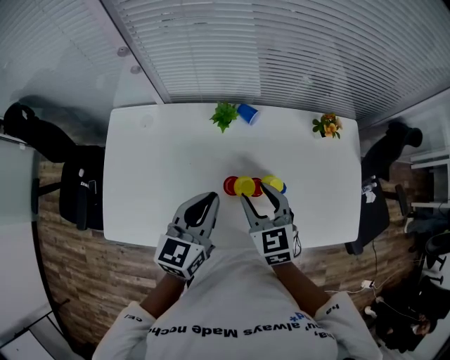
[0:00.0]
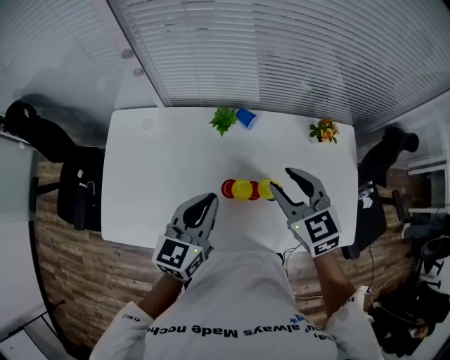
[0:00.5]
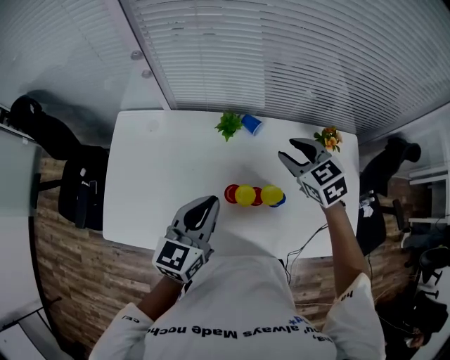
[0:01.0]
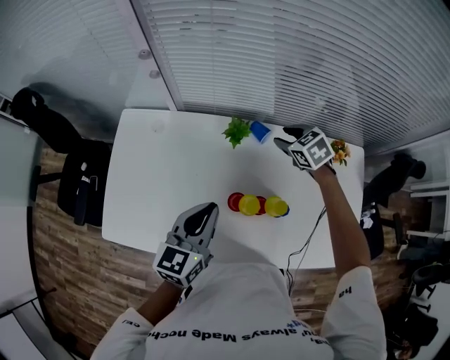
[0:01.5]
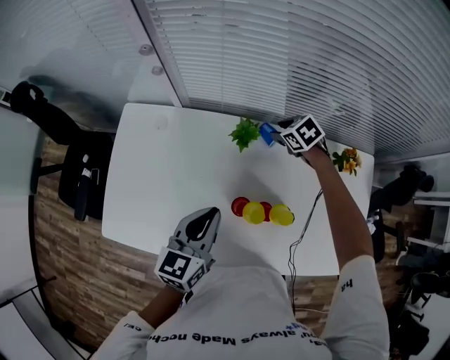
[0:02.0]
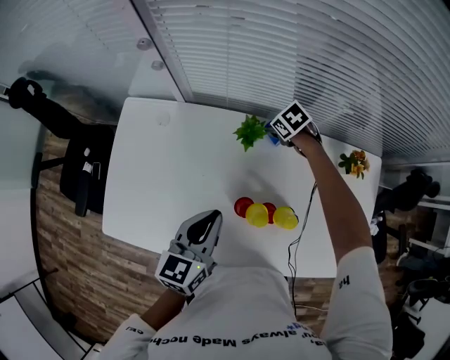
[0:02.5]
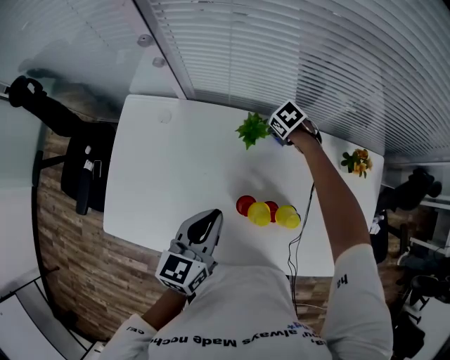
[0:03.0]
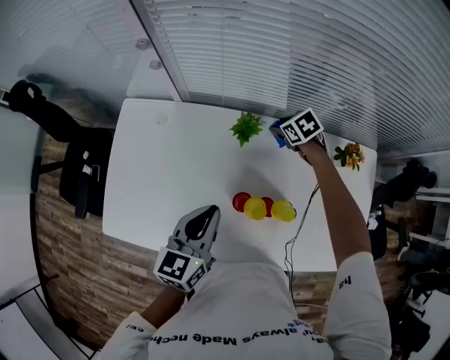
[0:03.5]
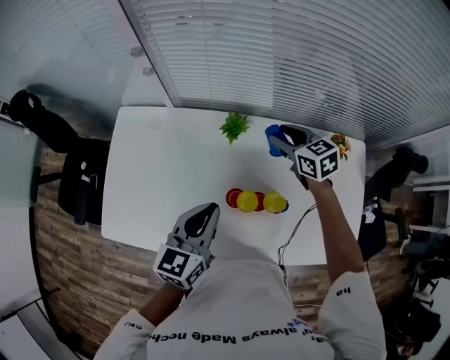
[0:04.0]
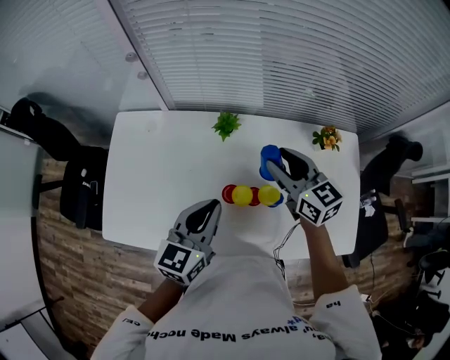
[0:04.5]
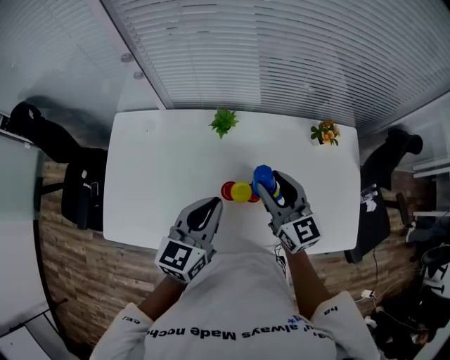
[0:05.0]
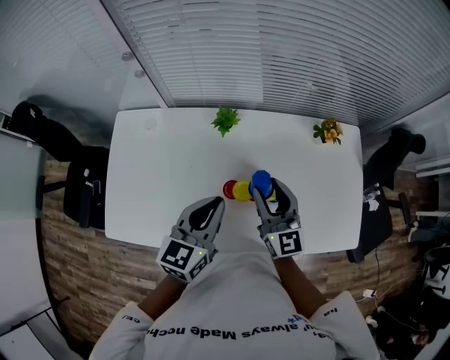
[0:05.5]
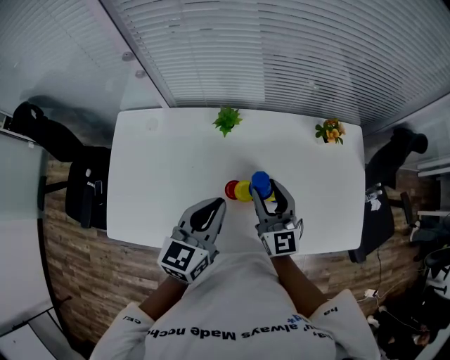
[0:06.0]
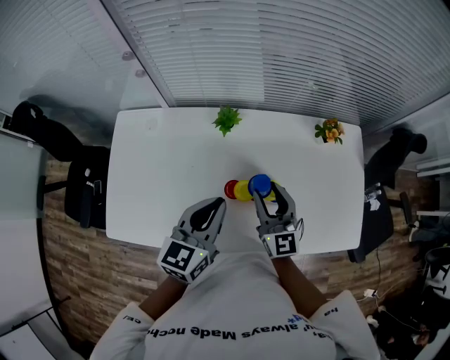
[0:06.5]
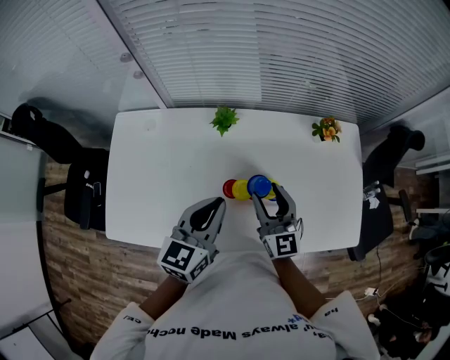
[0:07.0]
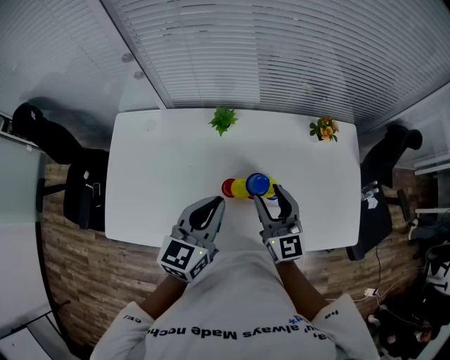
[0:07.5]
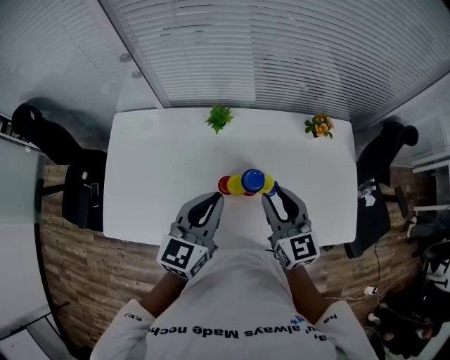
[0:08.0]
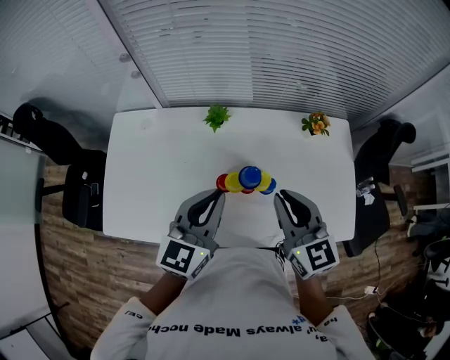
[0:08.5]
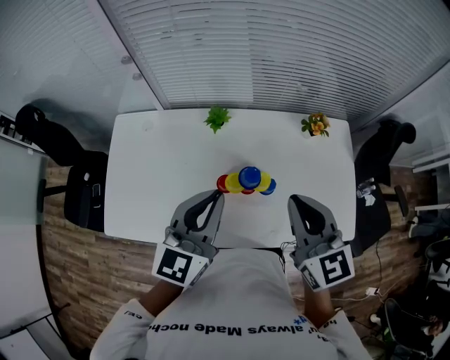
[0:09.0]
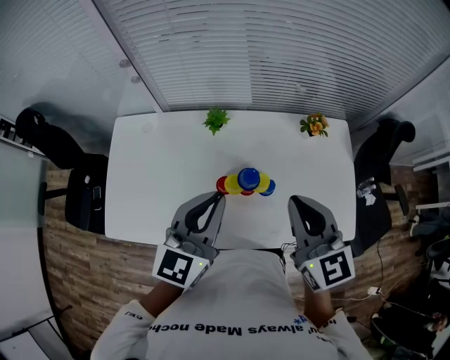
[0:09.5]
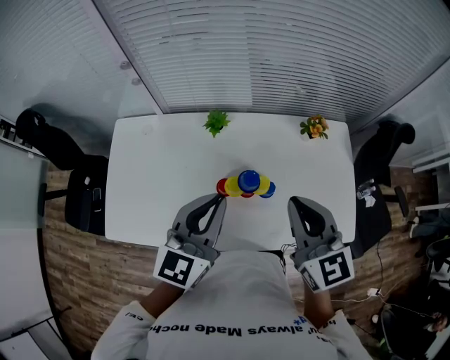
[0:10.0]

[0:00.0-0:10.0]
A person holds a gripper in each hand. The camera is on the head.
0:00.0 to 0:02.0: The left gripper changes place by about 5 cm. The right gripper shifts approximately 30 cm forward and downward, and points its fingers some 30 degrees further downward.
0:02.0 to 0:04.0: The right gripper goes approximately 10 cm upward, and swivels about 30 degrees.
0:04.0 to 0:06.0: The right gripper moves backward, some 20 cm, and angles its fingers upward, by approximately 30 degrees.
0:06.0 to 0:08.0: The right gripper shifts by approximately 5 cm.
0:08.0 to 0:10.0: The right gripper moves upward, approximately 10 cm, and closes up, while the left gripper travels upward by about 5 cm.

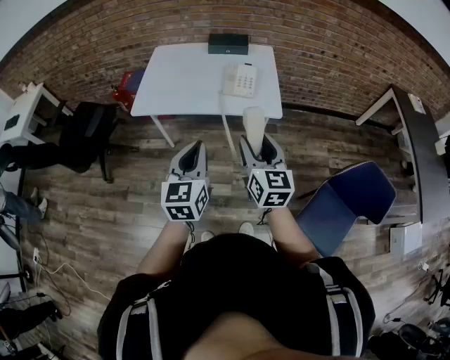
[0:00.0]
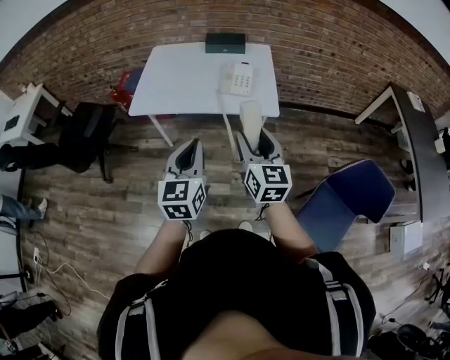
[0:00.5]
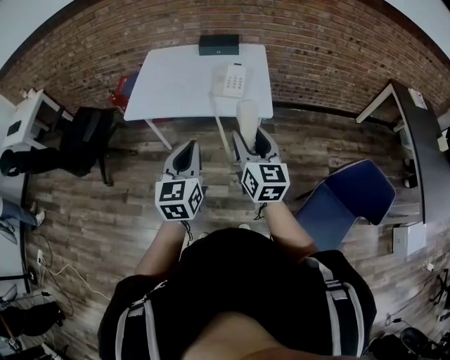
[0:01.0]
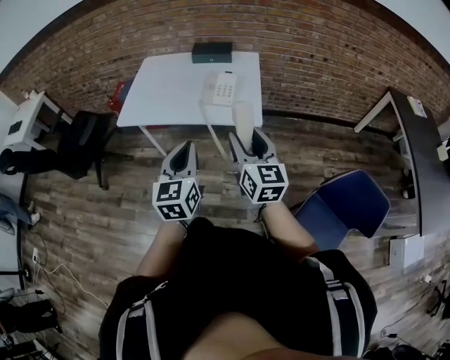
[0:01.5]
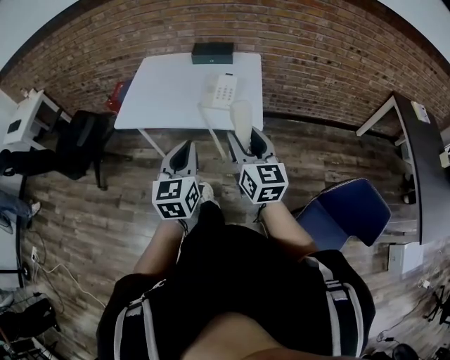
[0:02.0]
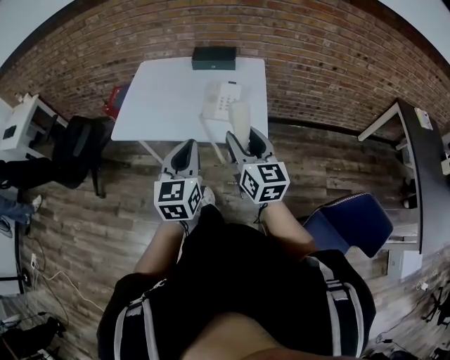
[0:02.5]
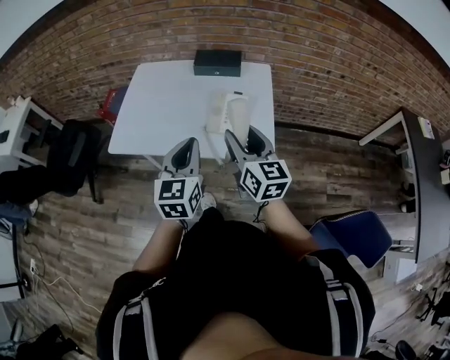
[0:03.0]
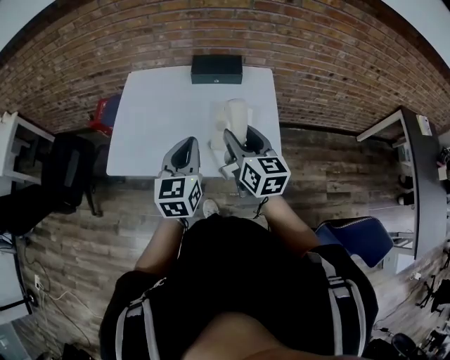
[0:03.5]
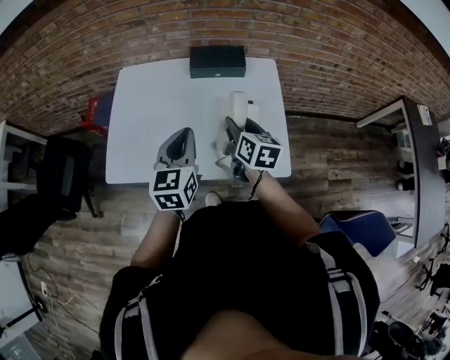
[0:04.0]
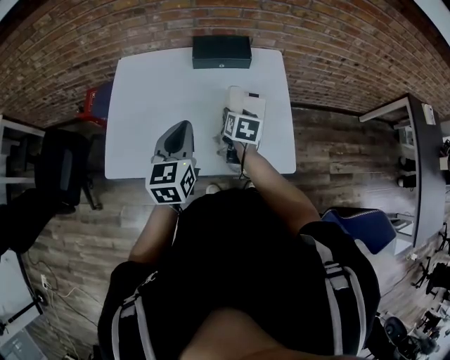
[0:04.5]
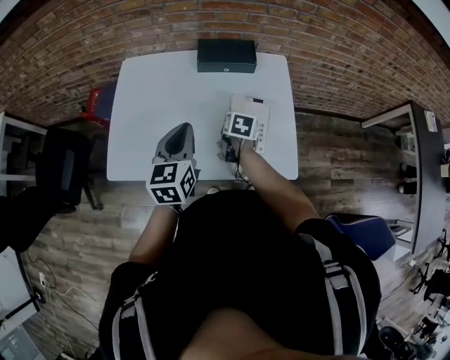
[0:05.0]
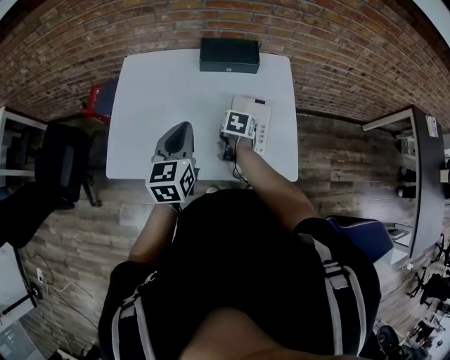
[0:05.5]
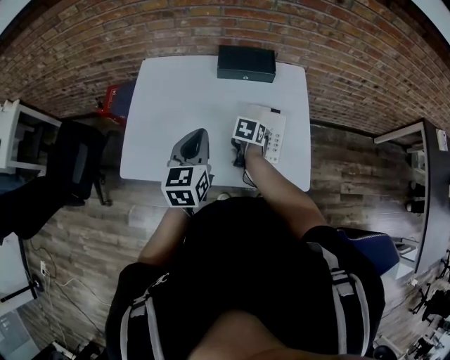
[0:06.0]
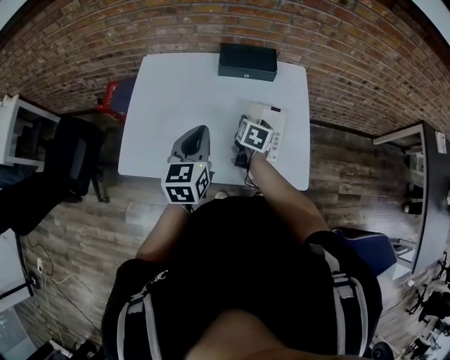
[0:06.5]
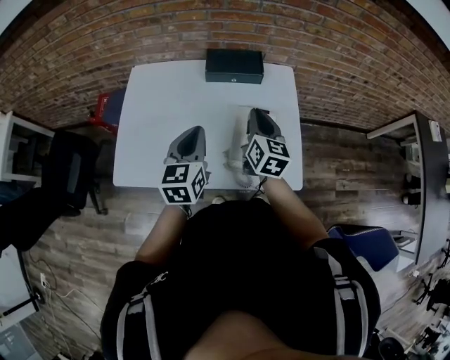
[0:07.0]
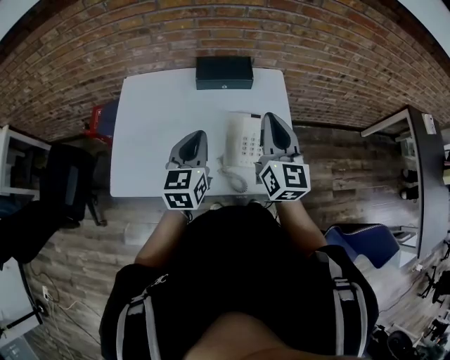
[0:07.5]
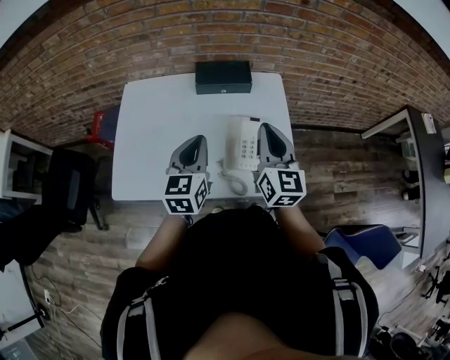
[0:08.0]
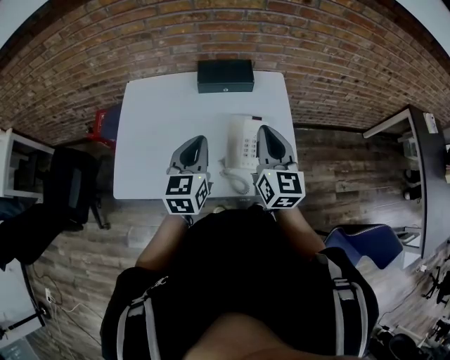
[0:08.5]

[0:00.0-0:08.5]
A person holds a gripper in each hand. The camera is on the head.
0:00.0 to 0:02.0: The grippers both shift to the right and forward by approximately 15 cm.
0:02.0 to 0:04.0: The two grippers go about 40 cm forward. The right gripper rotates some 30 degrees.
0:04.0 to 0:06.5: The left gripper moves about 5 cm. Meanwhile the right gripper is displaced downward and forward by about 15 cm, and turns by approximately 20 degrees.
0:06.5 to 0:08.5: The right gripper shifts approximately 20 cm upward, tips its fingers upward by some 40 degrees, and closes up. Meanwhile the left gripper shifts by about 5 cm.

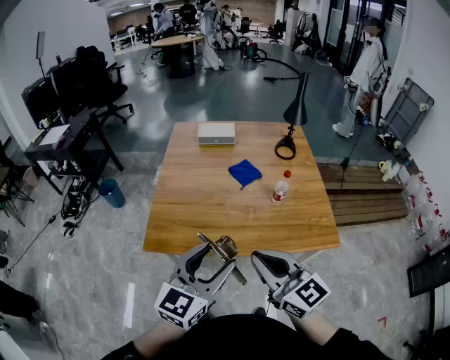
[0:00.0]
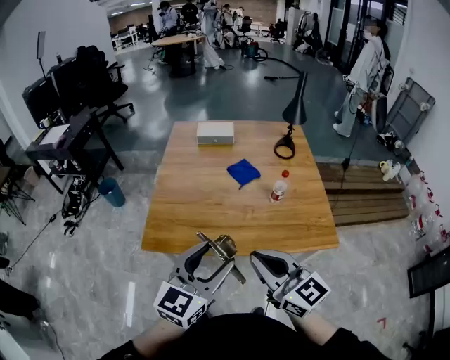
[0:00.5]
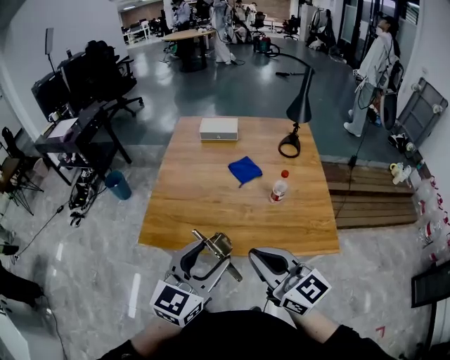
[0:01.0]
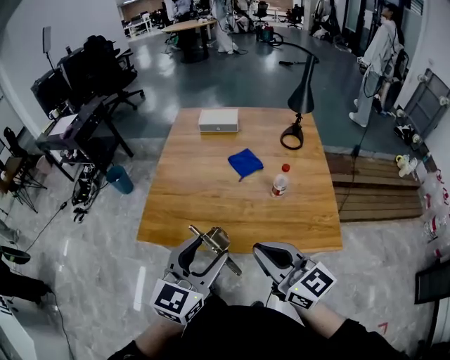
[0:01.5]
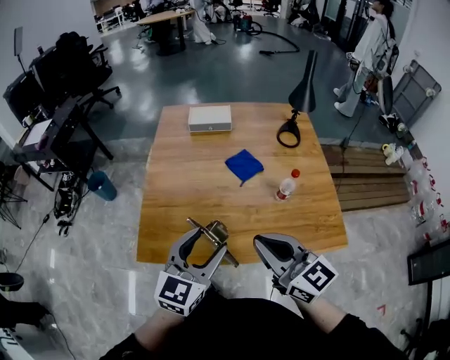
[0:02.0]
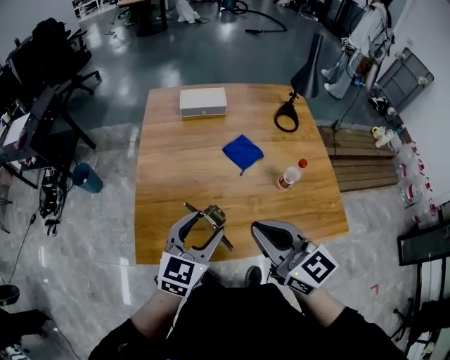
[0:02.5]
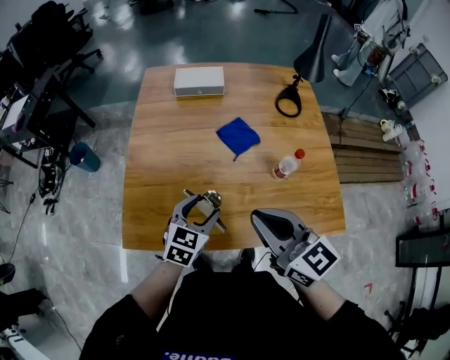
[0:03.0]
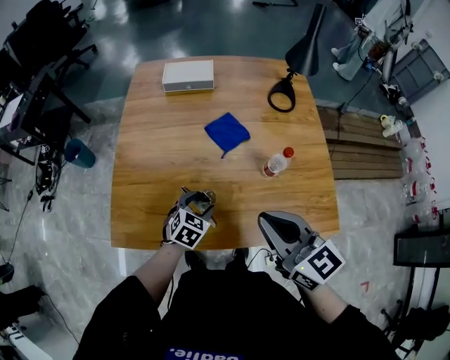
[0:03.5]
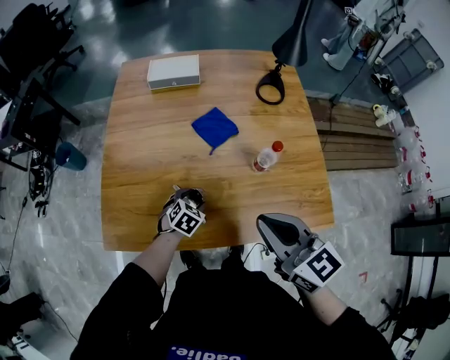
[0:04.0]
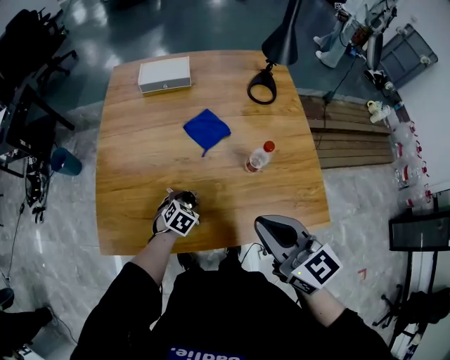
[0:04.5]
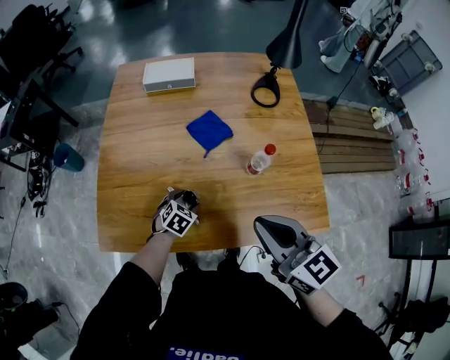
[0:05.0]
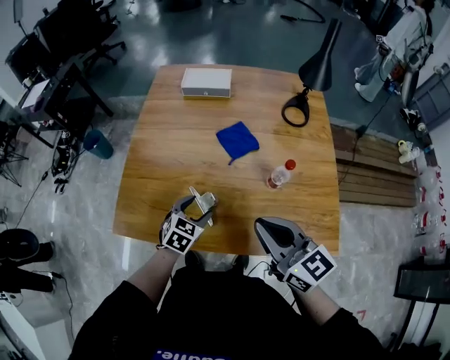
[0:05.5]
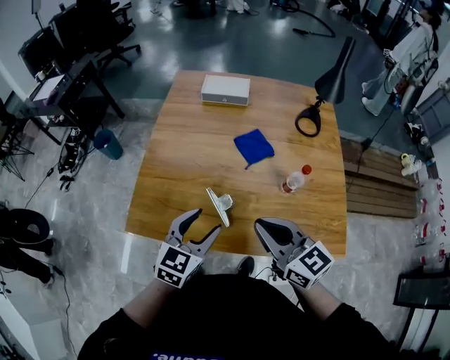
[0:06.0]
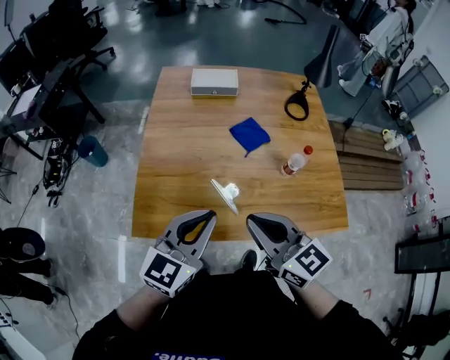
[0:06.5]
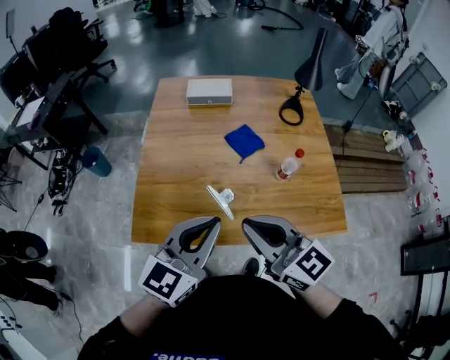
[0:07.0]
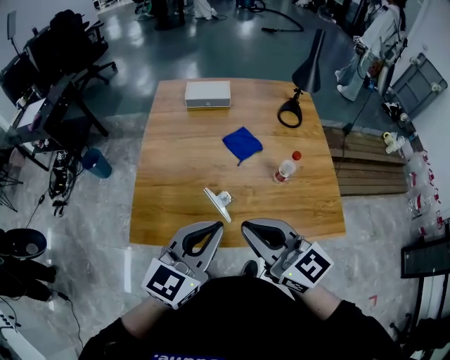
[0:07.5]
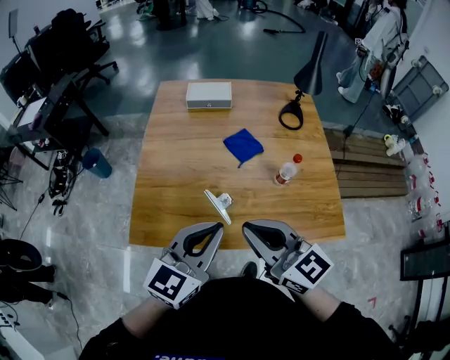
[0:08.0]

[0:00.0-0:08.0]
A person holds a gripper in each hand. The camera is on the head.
0:00.0 to 0:02.0: Both grippers move forward, roughly 15 cm.
0:02.0 to 0:04.0: The left gripper is displaced downward and forward by some 40 cm, and points its fingers roughly 50 degrees further downward. The right gripper heads to the right, forward and downward, covering approximately 15 cm.
0:04.0 to 0:06.0: The right gripper heads to the left, covering some 5 cm. Meanwhile the left gripper travels upward by approximately 25 cm, and points its fingers about 30 degrees further upward.
0:06.0 to 0:08.0: The left gripper moves upward and backward, roughly 15 cm, and closes; the right gripper goes some 10 cm upward and to the left.
